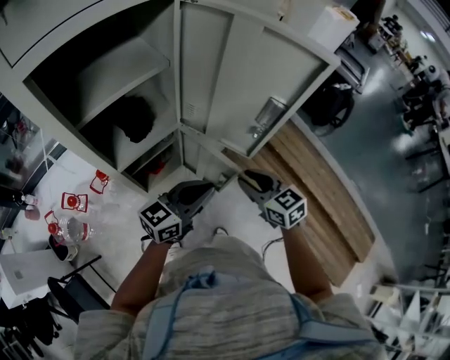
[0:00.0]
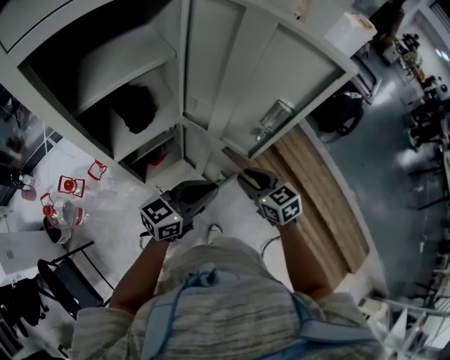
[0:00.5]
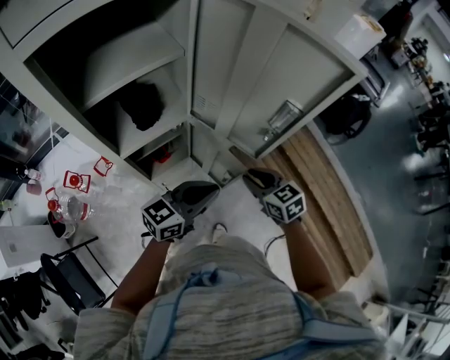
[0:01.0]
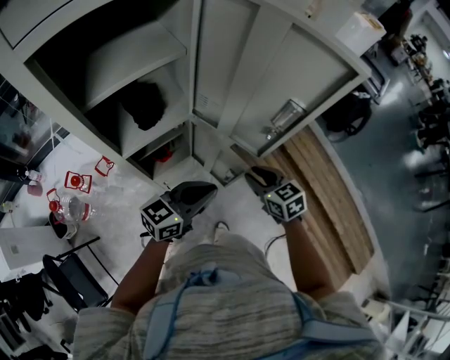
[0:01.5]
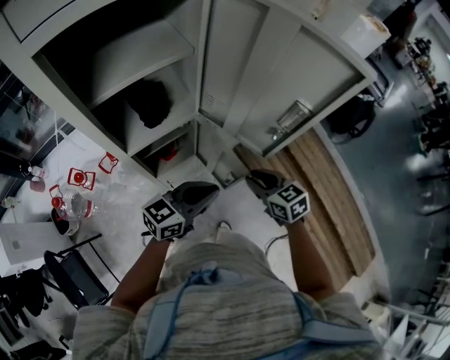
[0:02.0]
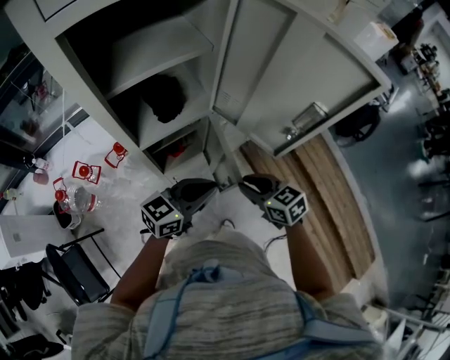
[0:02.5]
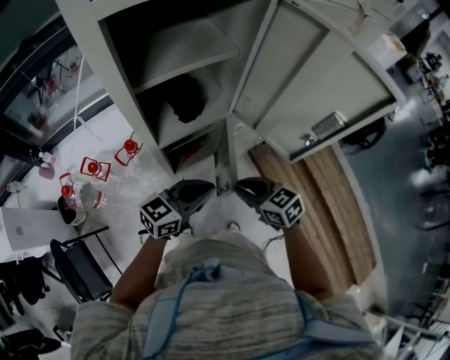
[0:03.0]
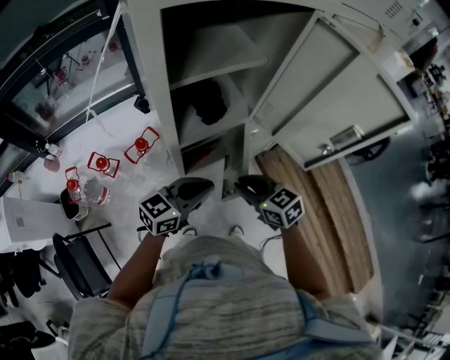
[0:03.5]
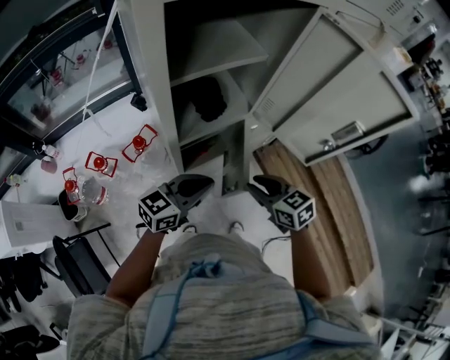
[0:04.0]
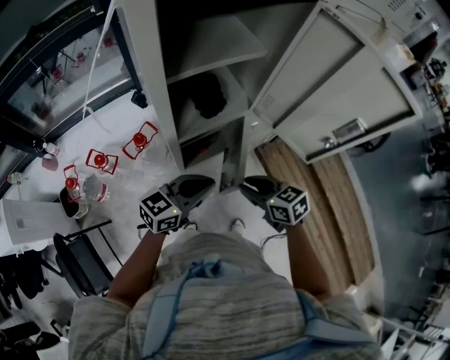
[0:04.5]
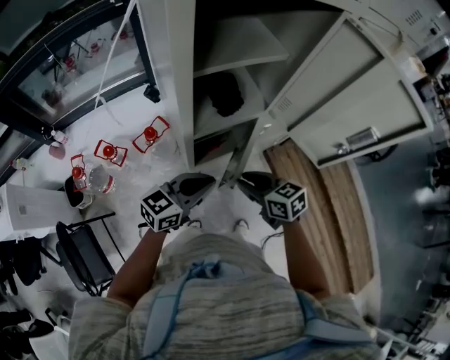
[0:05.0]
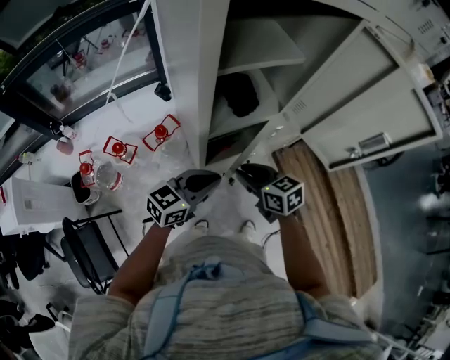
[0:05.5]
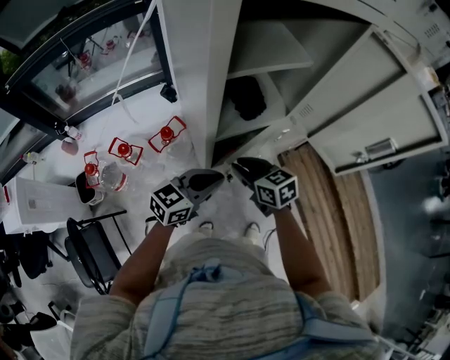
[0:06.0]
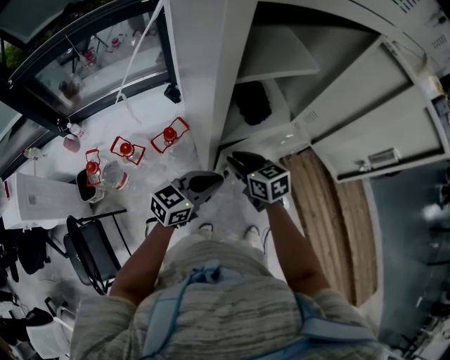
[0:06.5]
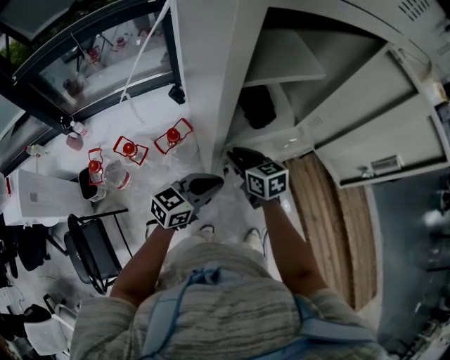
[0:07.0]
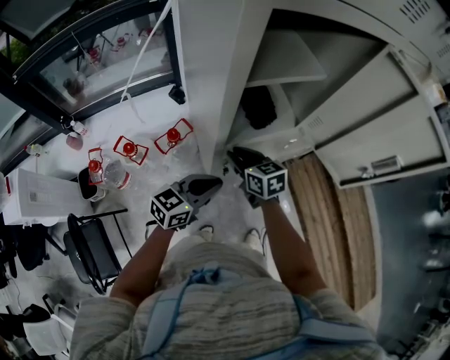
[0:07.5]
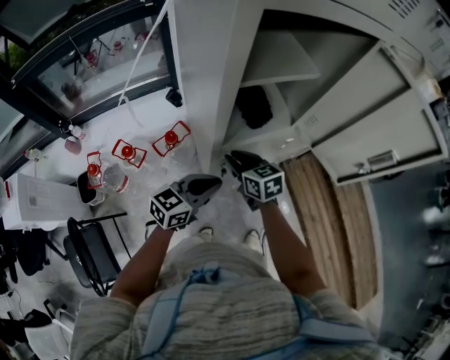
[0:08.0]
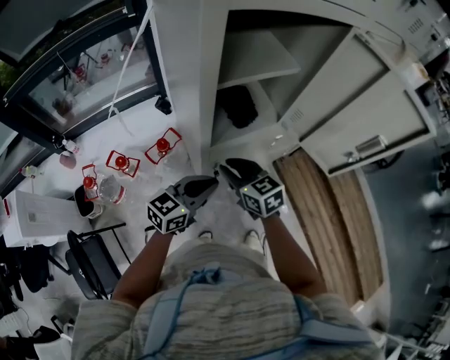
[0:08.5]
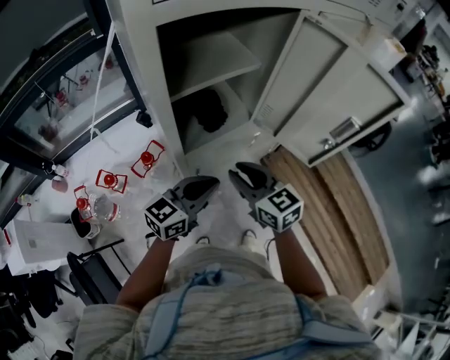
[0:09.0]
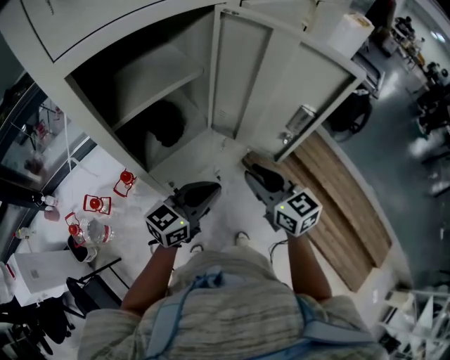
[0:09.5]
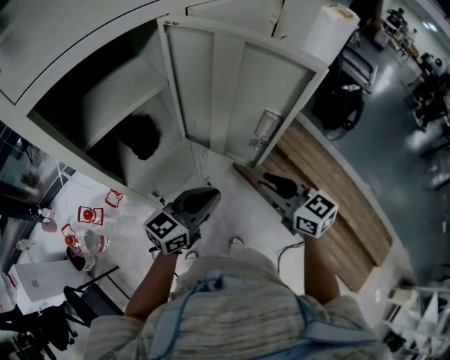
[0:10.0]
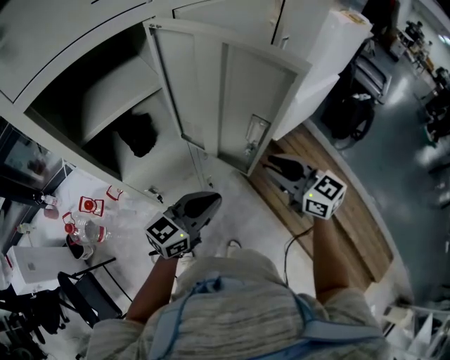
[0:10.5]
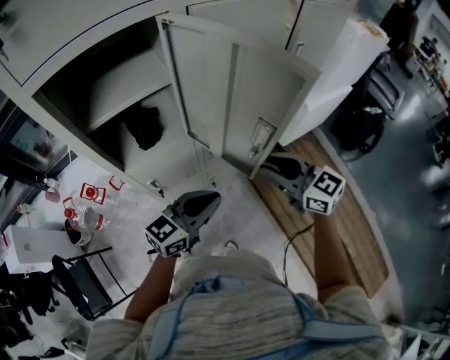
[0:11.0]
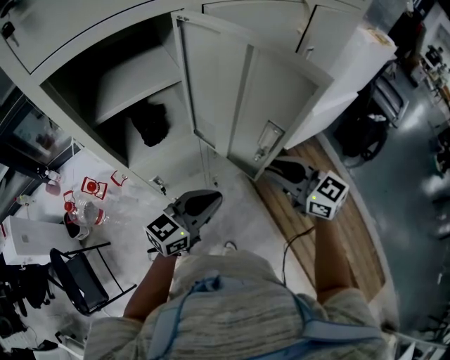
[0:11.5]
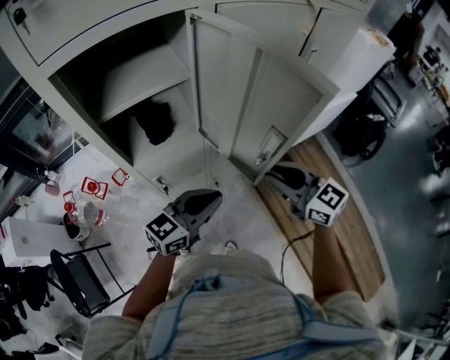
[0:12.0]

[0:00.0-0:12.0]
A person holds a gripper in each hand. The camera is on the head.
0:00.0 to 0:02.0: The right gripper is displaced downward by some 5 cm.
0:02.0 to 0:04.0: Both grippers travel together to the left, roughly 15 cm.
0:04.0 to 0:06.0: The left gripper goes approximately 5 cm to the left; the right gripper goes about 15 cm to the left.
0:06.0 to 0:08.0: The right gripper changes place by some 5 cm.
0:08.0 to 0:10.0: The left gripper moves to the right, some 25 cm. Meanwhile the right gripper shifts roughly 40 cm to the right and upward.
0:10.0 to 0:12.0: The right gripper rotates about 20 degrees.

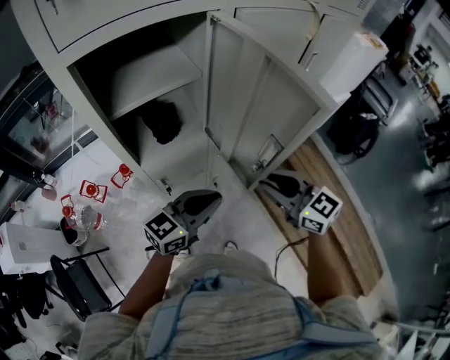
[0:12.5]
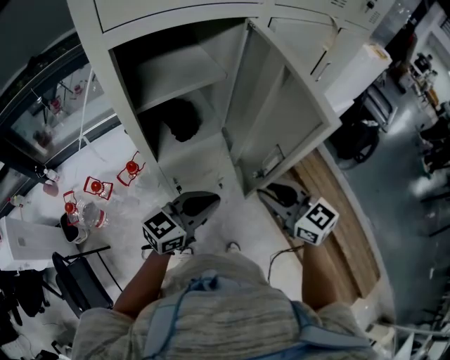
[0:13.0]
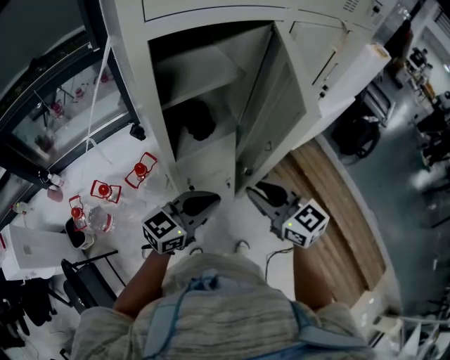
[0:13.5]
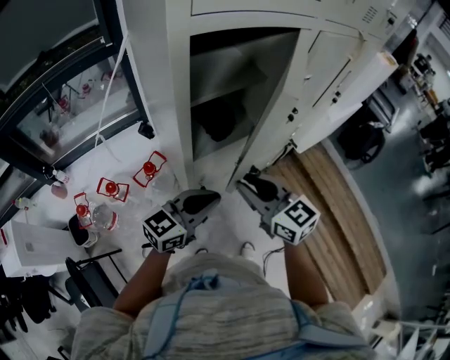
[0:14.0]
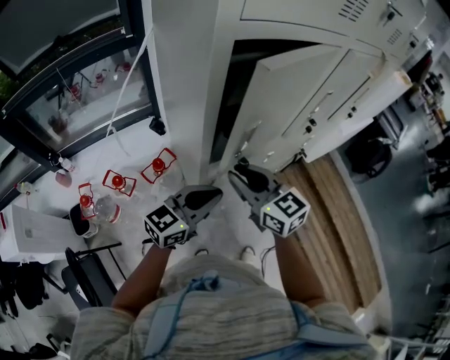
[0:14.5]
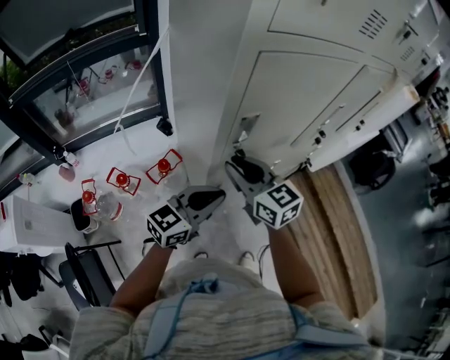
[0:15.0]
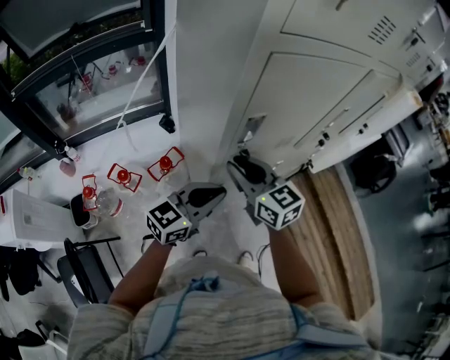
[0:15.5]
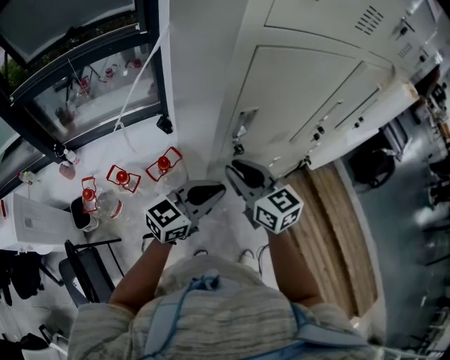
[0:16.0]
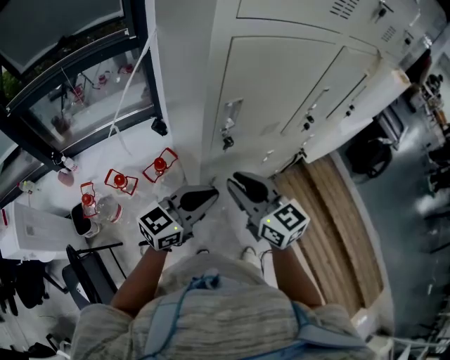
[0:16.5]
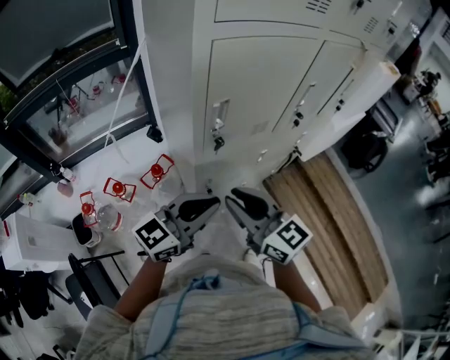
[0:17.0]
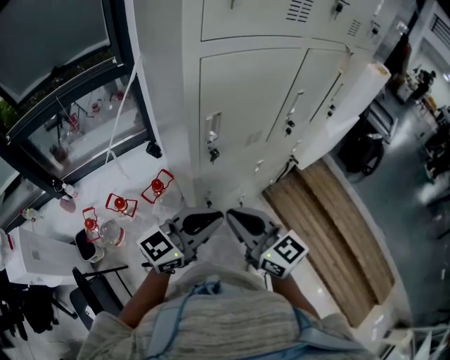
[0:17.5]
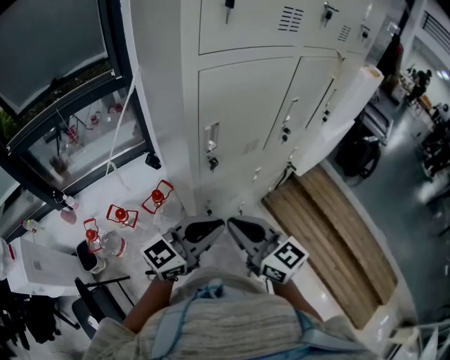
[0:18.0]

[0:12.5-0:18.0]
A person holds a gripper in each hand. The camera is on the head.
0:12.5 to 0:14.5: Both grippers travel together to the left, approximately 25 cm.
0:14.5 to 0:16.0: The grippers move only a little.
0:16.0 to 0:18.0: The right gripper travels backward by approximately 15 cm. Meanwhile the left gripper is displaced backward and upward by some 10 cm.

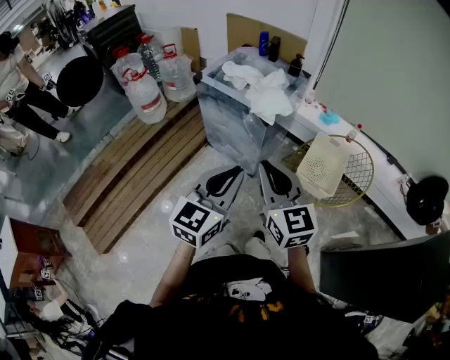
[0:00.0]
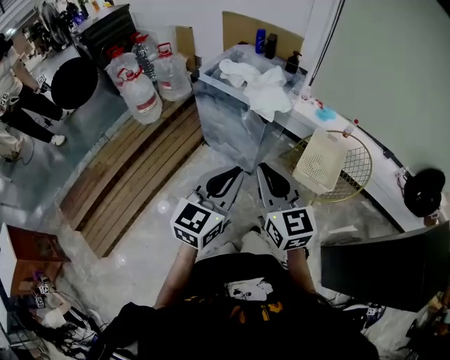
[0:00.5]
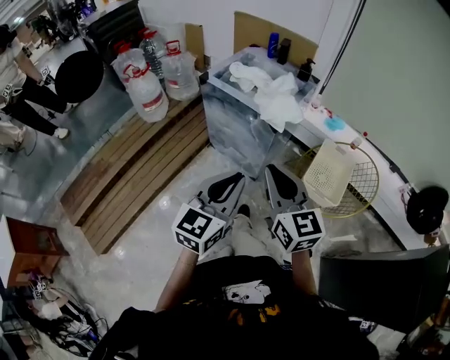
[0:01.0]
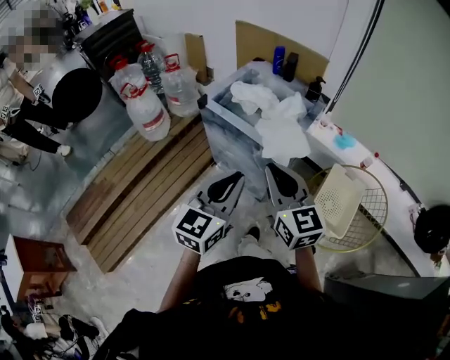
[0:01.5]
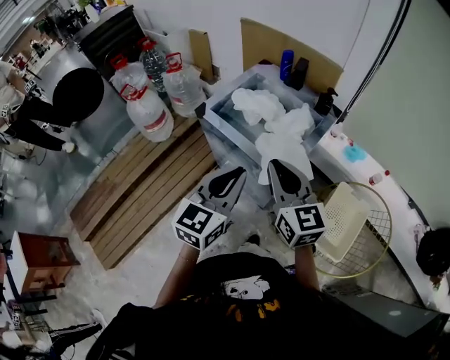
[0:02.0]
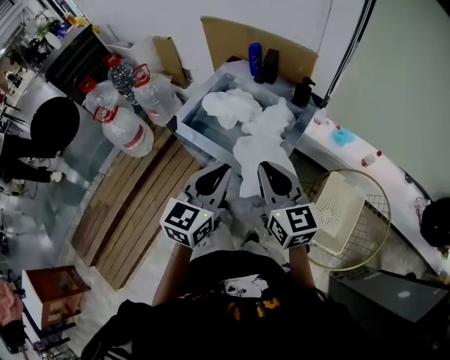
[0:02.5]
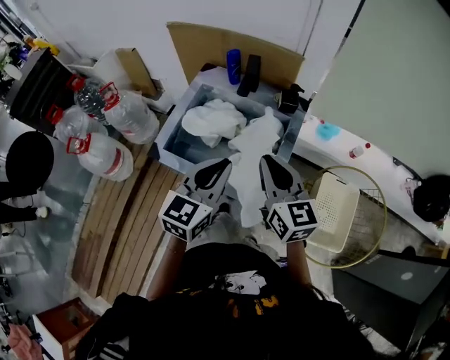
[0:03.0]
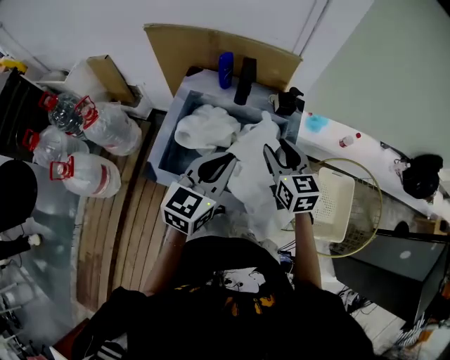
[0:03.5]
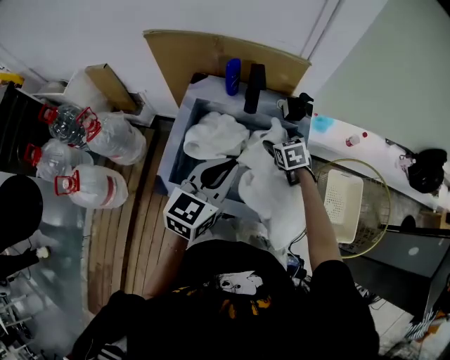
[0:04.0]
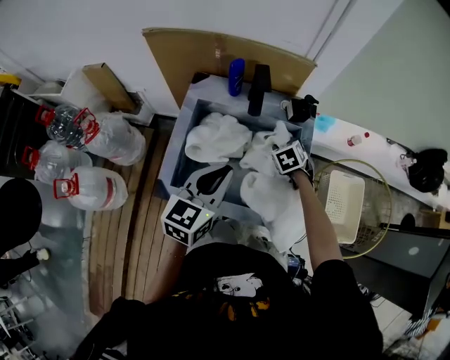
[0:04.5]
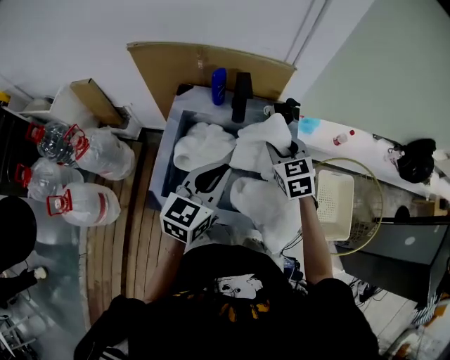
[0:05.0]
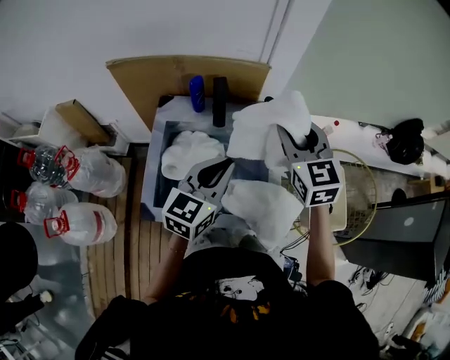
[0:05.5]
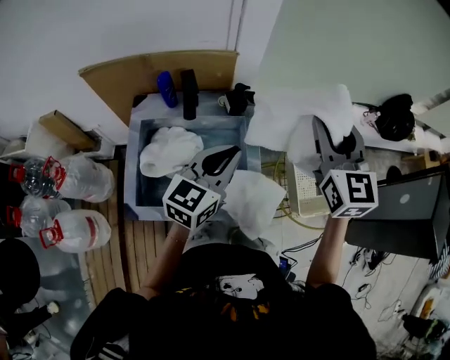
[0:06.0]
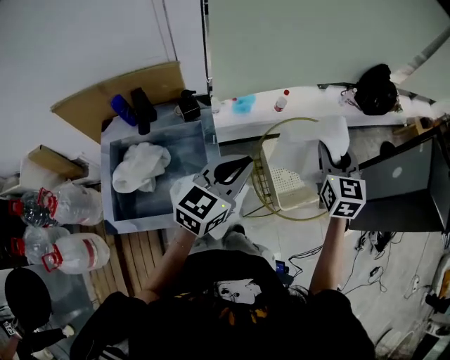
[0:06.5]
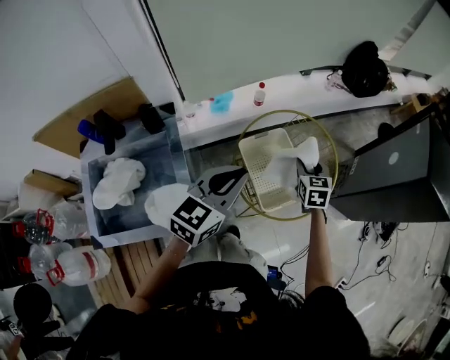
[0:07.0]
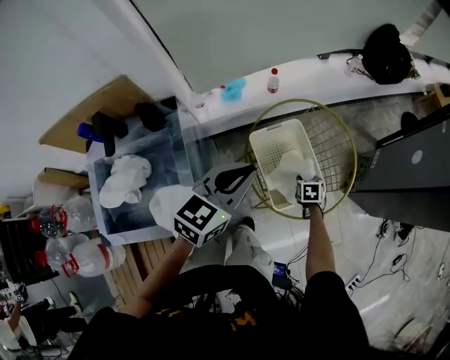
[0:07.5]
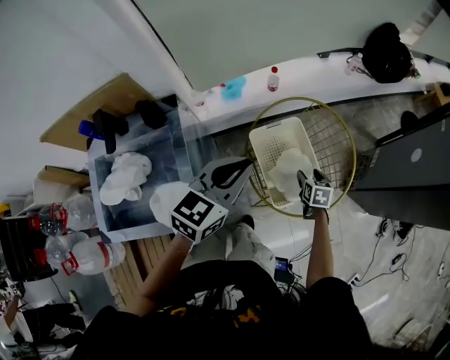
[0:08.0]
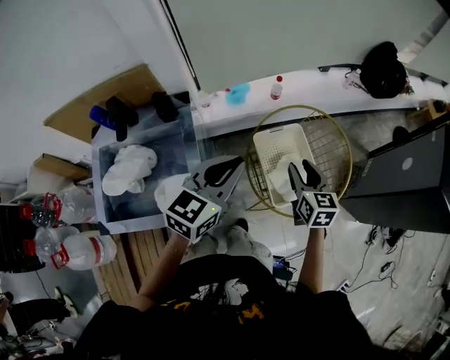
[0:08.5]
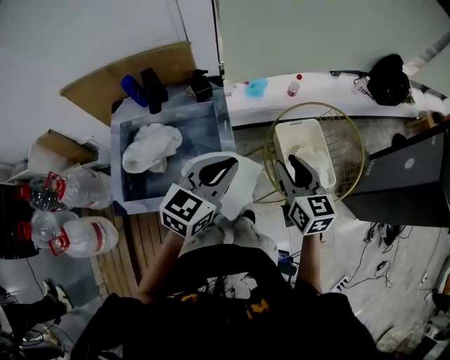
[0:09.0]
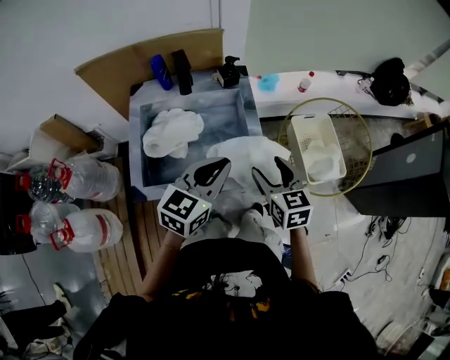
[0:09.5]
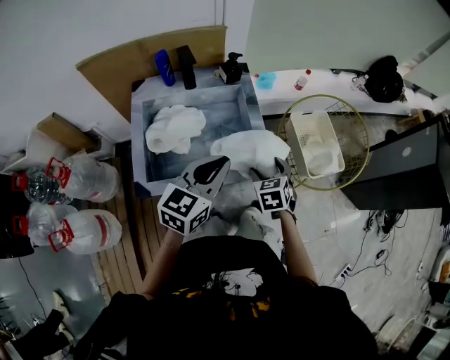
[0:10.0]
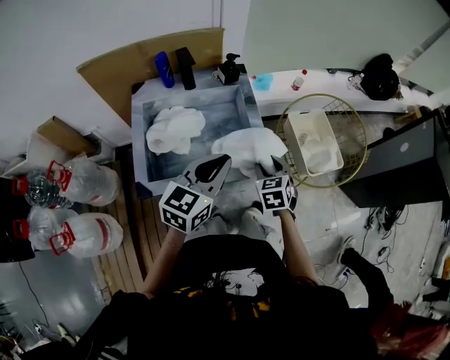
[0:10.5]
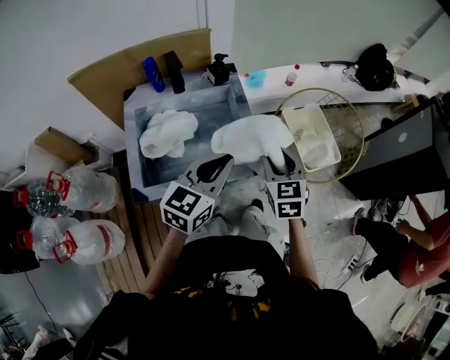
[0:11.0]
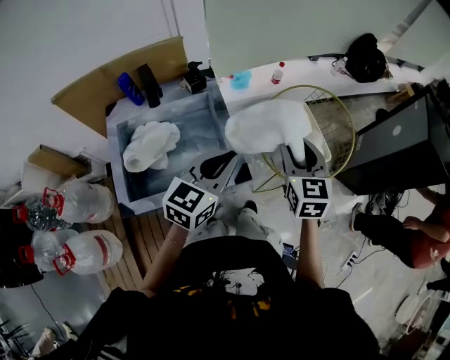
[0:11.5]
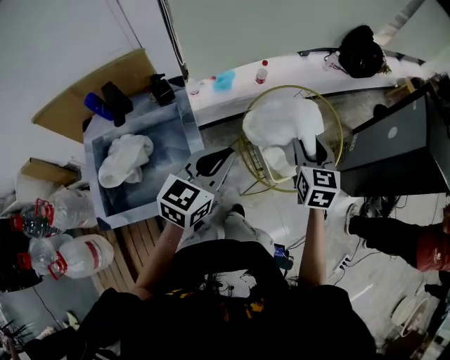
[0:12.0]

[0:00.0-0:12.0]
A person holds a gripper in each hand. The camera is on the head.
0:00.0 to 0:02.0: The grippers both shift forward by some 35 cm.
0:02.0 to 0:04.0: The right gripper moves some 40 cm, points its fingers roughly 40 degrees further downward, and opens up, while the left gripper shifts by approximately 30 cm, and changes its angle by some 30 degrees.
0:04.0 to 0:06.0: The left gripper goes some 15 cm to the right and forward. The right gripper moves upward and to the right, approximately 40 cm, tips its fingers upward by some 40 degrees, and closes.
0:06.0 to 0:08.0: The right gripper goes some 60 cm downward and to the right, points its fingers roughly 50 degrees further downward, and opens up. Meanwhile the left gripper heads to the right and forward, covering roughly 30 cm, and changes its angle by roughly 20 degrees.
0:08.0 to 0:10.0: The grippers both shift to the left and backward by roughly 40 cm. The right gripper rotates roughly 30 degrees.
0:10.0 to 0:12.0: The right gripper goes roughly 35 cm to the right, forward and upward, turns by some 30 degrees, and closes, while the left gripper travels to the right and forward by about 25 cm.
